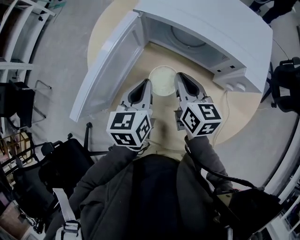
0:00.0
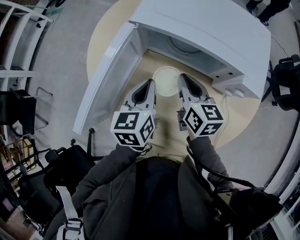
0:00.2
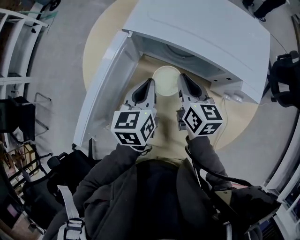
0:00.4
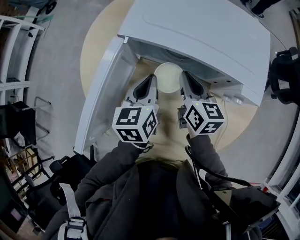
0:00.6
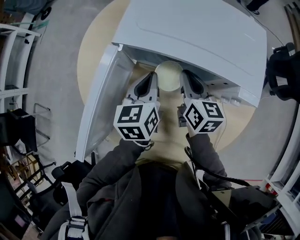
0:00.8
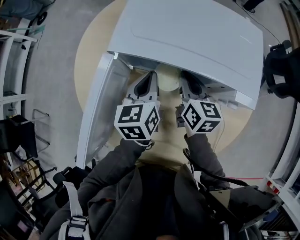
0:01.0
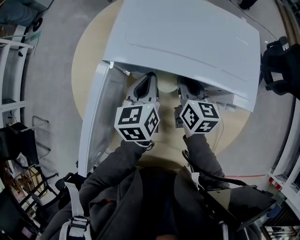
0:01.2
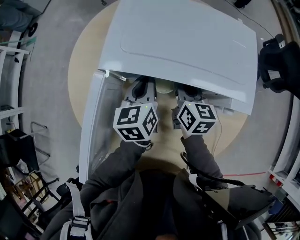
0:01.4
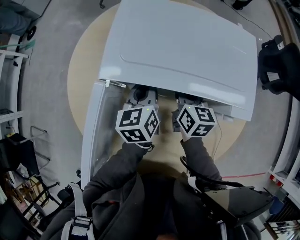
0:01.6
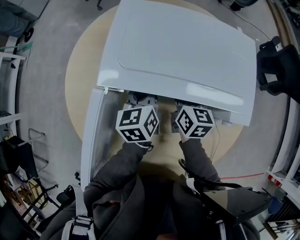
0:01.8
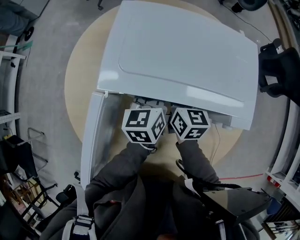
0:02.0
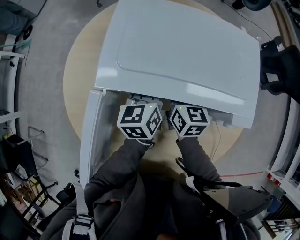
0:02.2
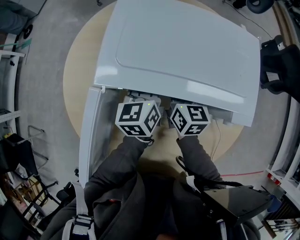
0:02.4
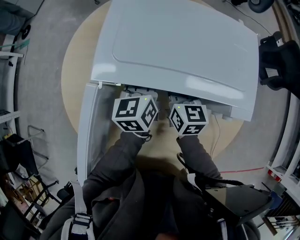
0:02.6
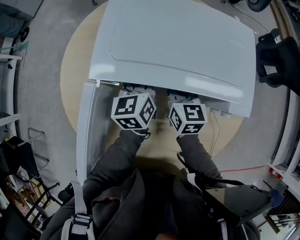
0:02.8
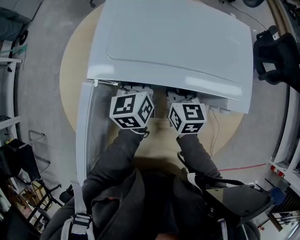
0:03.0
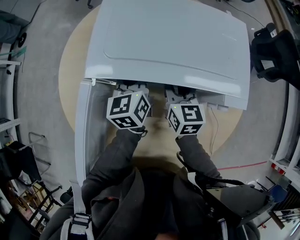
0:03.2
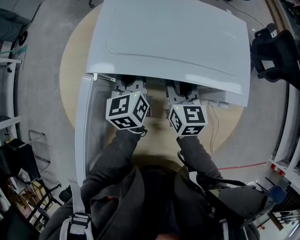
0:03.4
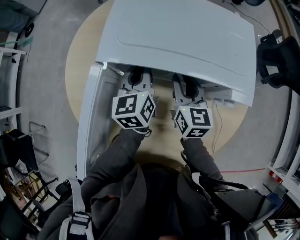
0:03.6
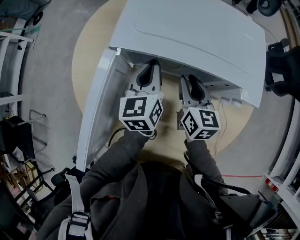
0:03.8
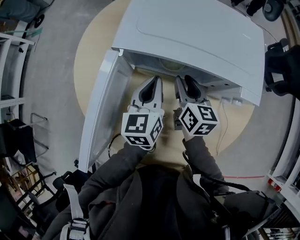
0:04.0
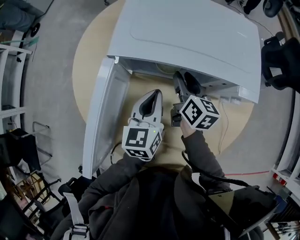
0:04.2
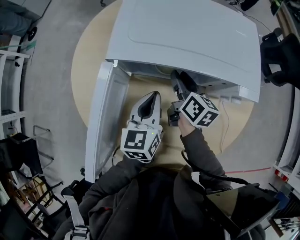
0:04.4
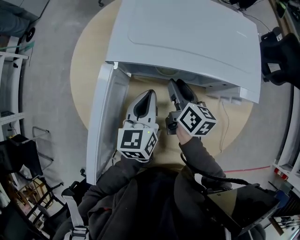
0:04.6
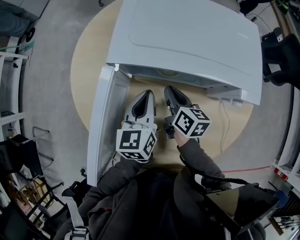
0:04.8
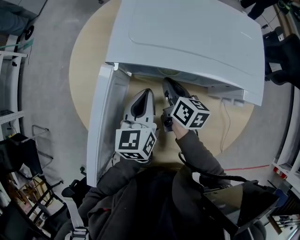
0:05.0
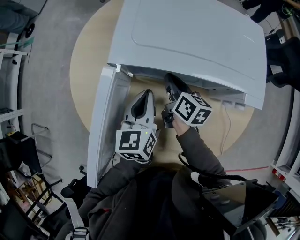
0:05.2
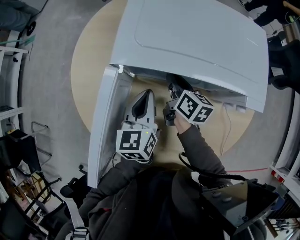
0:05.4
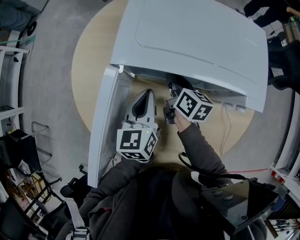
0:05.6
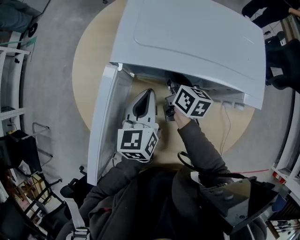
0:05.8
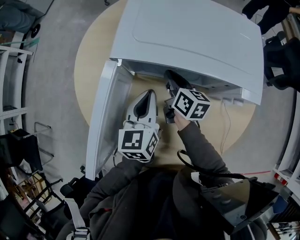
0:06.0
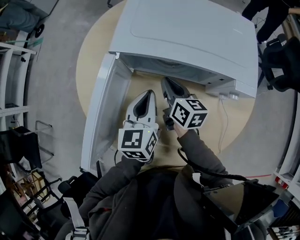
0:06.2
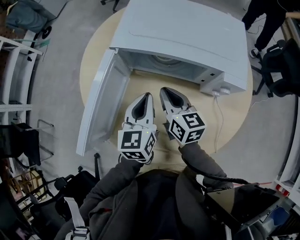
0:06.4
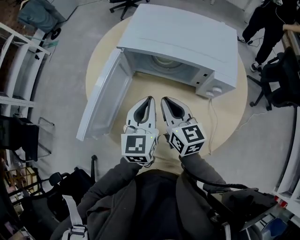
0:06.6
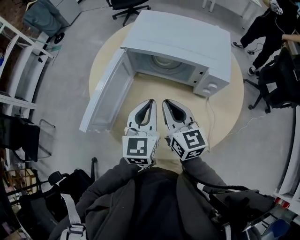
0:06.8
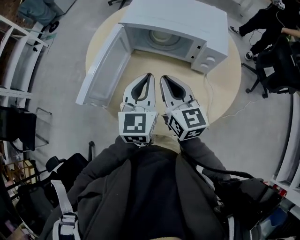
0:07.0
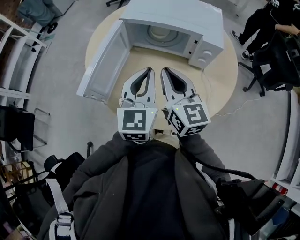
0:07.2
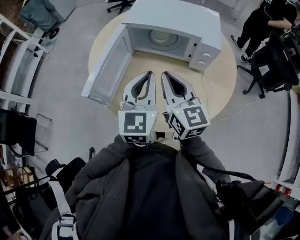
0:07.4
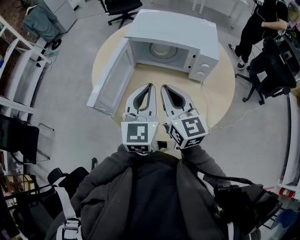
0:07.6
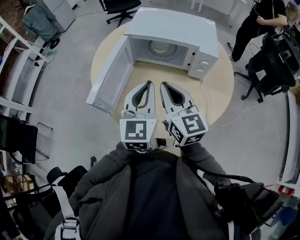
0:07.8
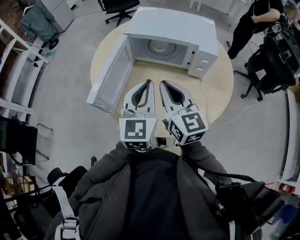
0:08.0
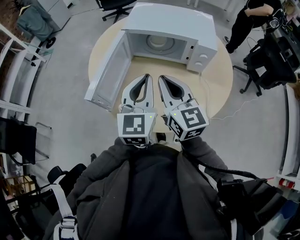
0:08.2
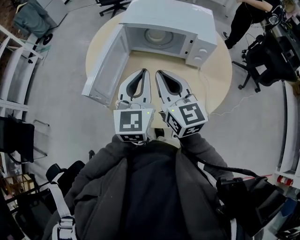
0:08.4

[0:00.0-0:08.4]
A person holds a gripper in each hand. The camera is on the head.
0:00.0 to 0:01.4: The right gripper heads forward and to the right, covering some 15 cm, and swivels some 20 degrees, while the left gripper travels forward by approximately 20 cm.
0:01.4 to 0:02.8: The left gripper travels forward by approximately 5 cm.
0:02.8 to 0:04.2: The left gripper shifts about 15 cm backward. Meanwhile the right gripper changes its angle by some 20 degrees, and opens.
0:04.2 to 0:05.6: The right gripper changes place by roughly 5 cm, and closes up; the left gripper changes place by about 5 cm.
0:05.6 to 0:07.0: The grippers both shift backward and upward by roughly 25 cm. The right gripper changes its angle by approximately 40 degrees, while the left gripper changes its angle by approximately 30 degrees.
0:07.0 to 0:08.4: The right gripper goes about 10 cm upward and backward, while the left gripper is displaced backward by approximately 5 cm.

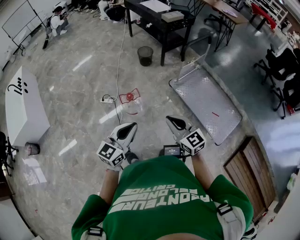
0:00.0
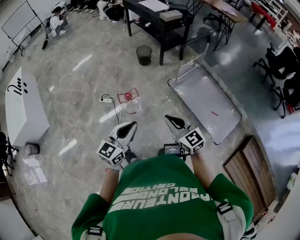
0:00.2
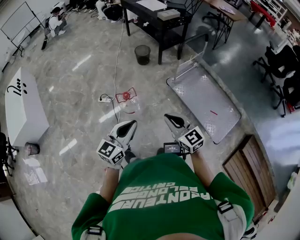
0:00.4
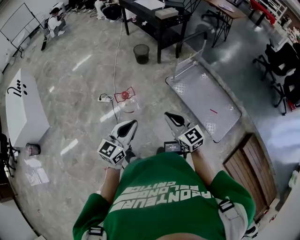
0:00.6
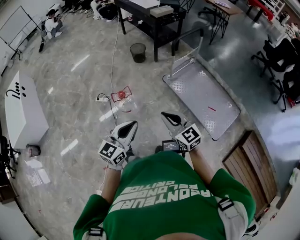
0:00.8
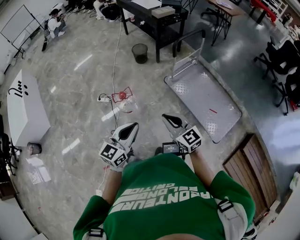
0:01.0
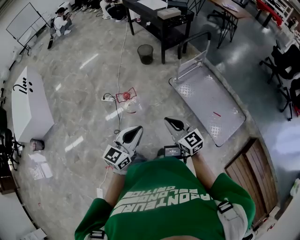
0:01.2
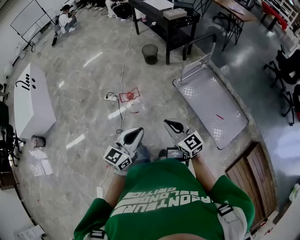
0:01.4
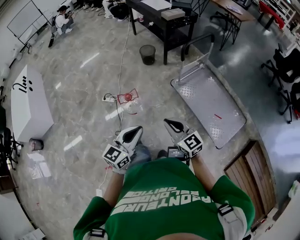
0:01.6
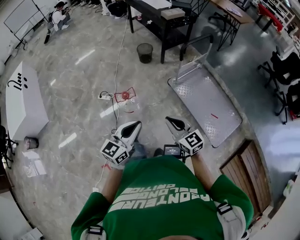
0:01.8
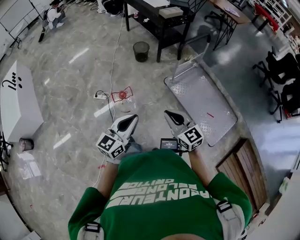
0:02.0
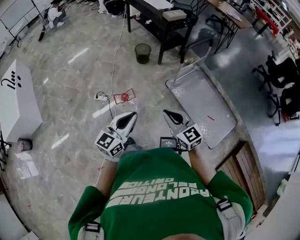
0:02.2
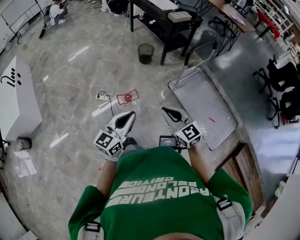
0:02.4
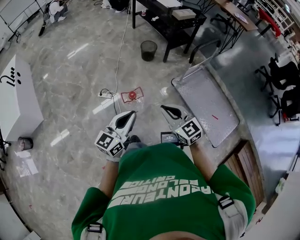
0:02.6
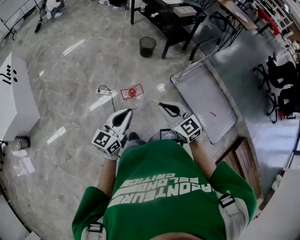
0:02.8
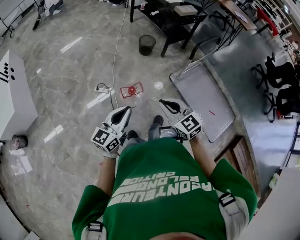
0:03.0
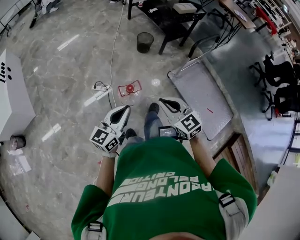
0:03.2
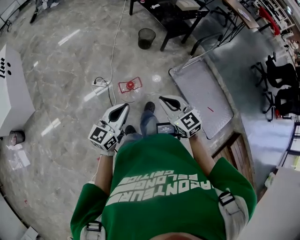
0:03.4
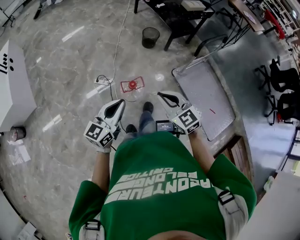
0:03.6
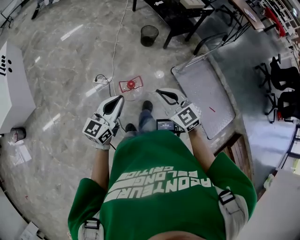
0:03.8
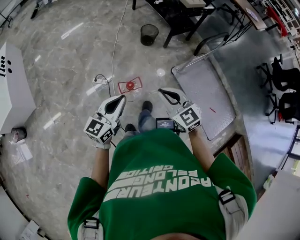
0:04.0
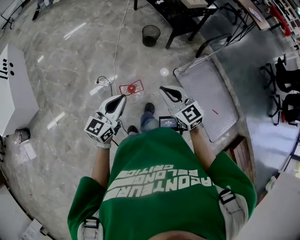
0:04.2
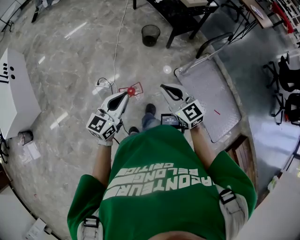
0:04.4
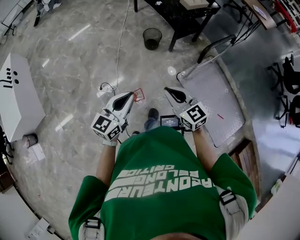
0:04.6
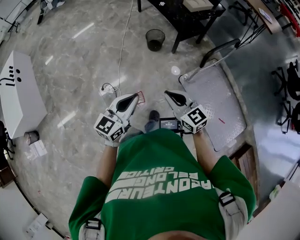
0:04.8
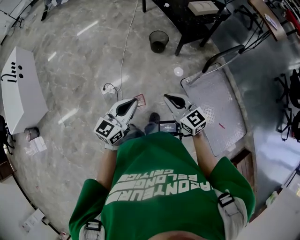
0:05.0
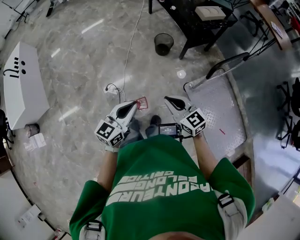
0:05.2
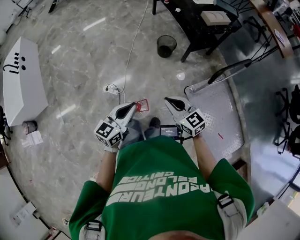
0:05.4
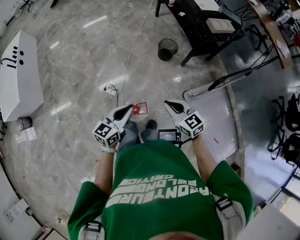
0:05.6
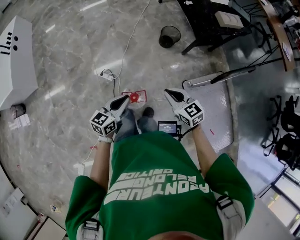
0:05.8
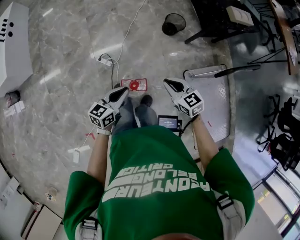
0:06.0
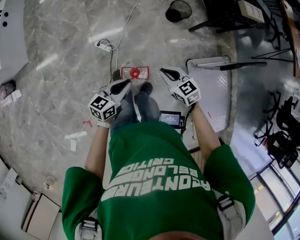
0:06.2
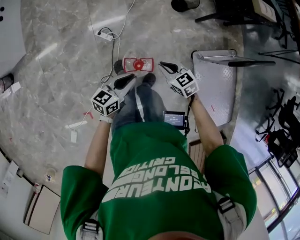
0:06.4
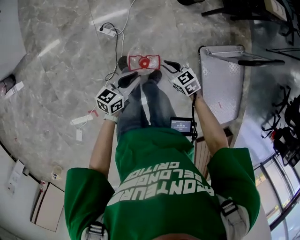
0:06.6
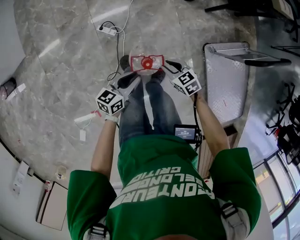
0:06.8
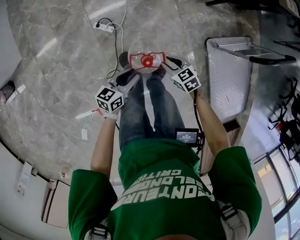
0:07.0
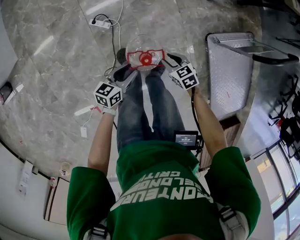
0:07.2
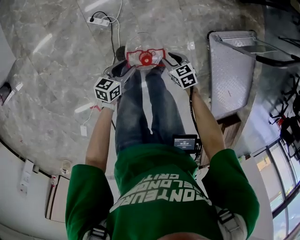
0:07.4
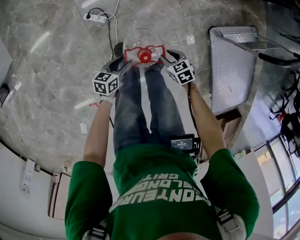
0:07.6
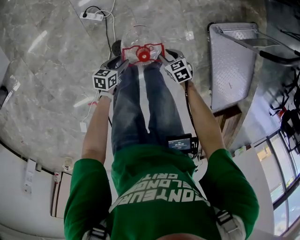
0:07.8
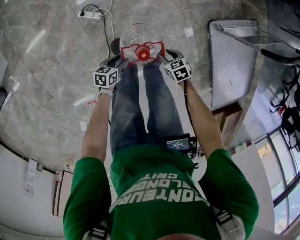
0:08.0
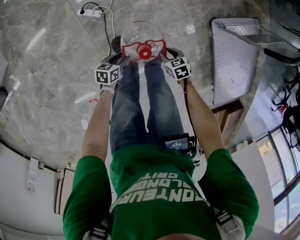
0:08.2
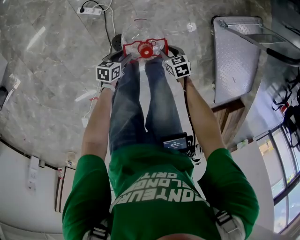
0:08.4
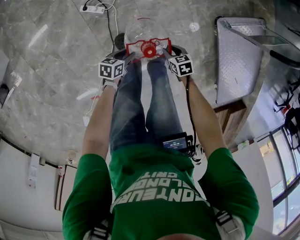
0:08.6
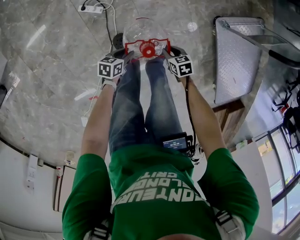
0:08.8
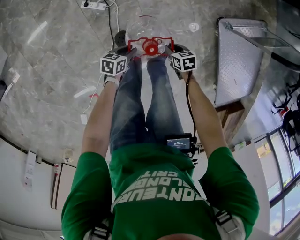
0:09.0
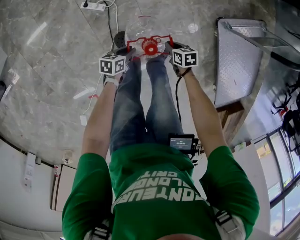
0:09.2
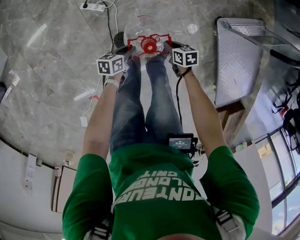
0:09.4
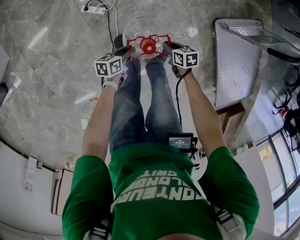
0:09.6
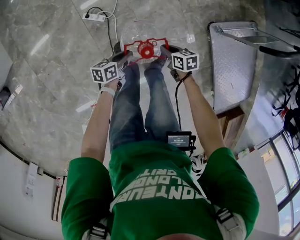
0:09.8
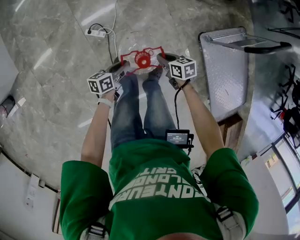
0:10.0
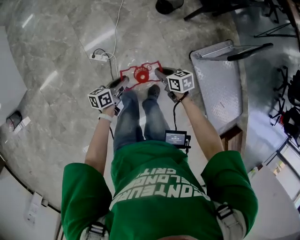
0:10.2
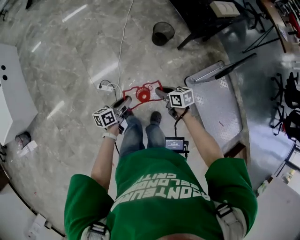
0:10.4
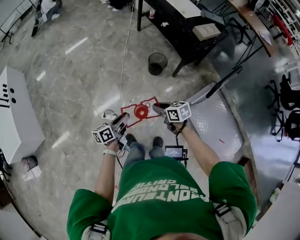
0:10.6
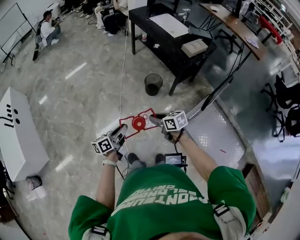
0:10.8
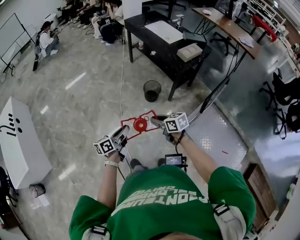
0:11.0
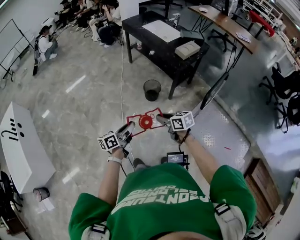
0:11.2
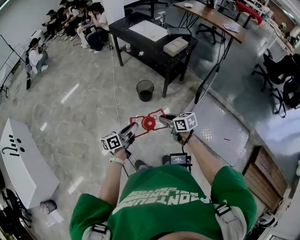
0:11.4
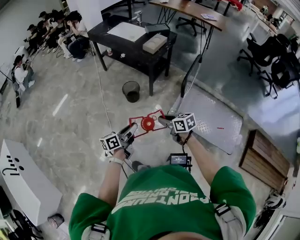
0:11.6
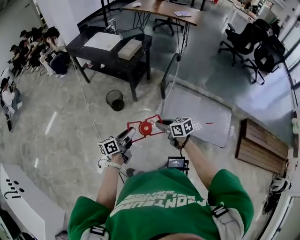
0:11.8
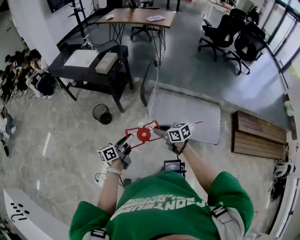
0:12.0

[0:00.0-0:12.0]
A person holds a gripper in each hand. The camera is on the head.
0:00.0 to 0:01.6: The left gripper is displaced to the right by roughly 10 cm. Meanwhile the right gripper travels to the right by roughly 5 cm.
0:01.6 to 0:03.0: The grippers both shift to the left and forward by approximately 25 cm.
0:03.0 to 0:04.4: The grippers both shift forward by roughly 15 cm.
0:04.4 to 0:06.0: The left gripper travels downward and forward by approximately 20 cm, and rotates about 30 degrees. Meanwhile the right gripper travels forward and downward by some 20 cm, and turns by some 30 degrees.
0:06.0 to 0:07.6: Both grippers travel together downward, roughly 40 cm. The left gripper changes its angle by roughly 30 degrees, and opens its fingers; the right gripper rotates approximately 30 degrees, and opens its fingers.
0:07.6 to 0:09.0: Both grippers move downward, approximately 10 cm. The right gripper rotates approximately 20 degrees; the left gripper closes its fingers.
0:09.0 to 0:10.4: Both grippers travel together upward, roughly 35 cm. The left gripper swivels roughly 30 degrees. Meanwhile the right gripper swivels some 30 degrees.
0:10.4 to 0:12.0: The left gripper shifts by about 35 cm, and rotates roughly 40 degrees. The right gripper ends up about 35 cm from where it was, and rotates some 40 degrees.

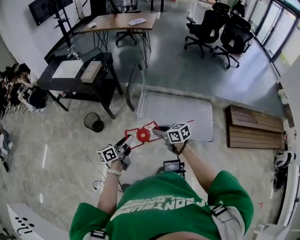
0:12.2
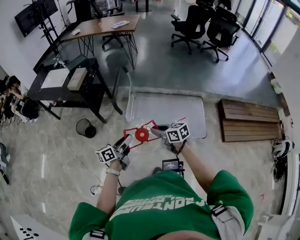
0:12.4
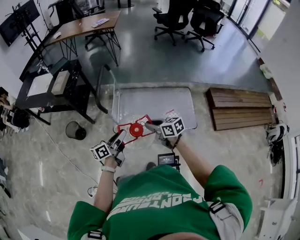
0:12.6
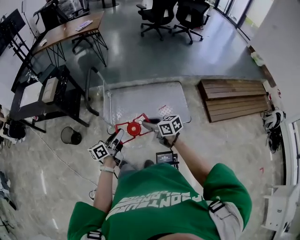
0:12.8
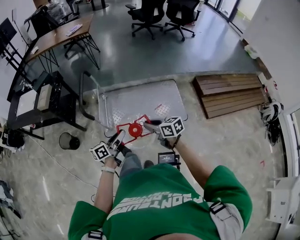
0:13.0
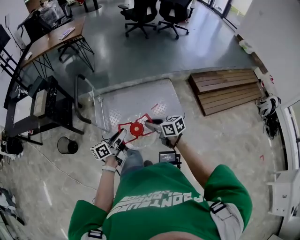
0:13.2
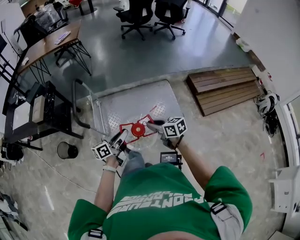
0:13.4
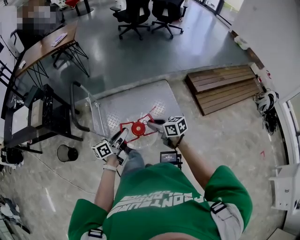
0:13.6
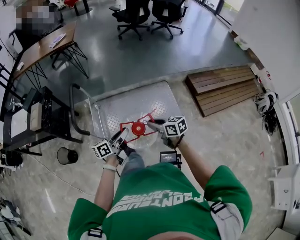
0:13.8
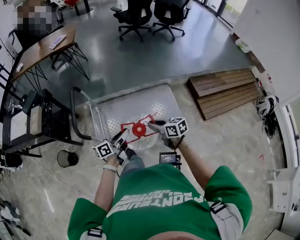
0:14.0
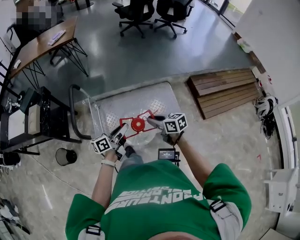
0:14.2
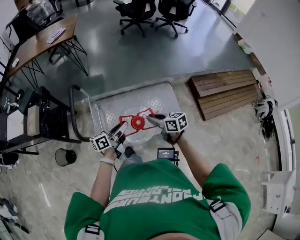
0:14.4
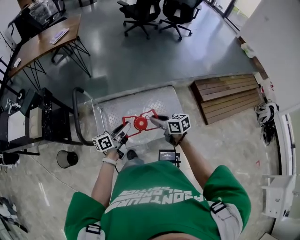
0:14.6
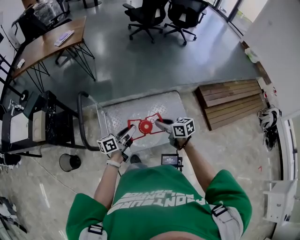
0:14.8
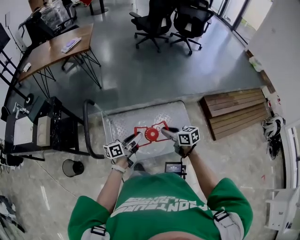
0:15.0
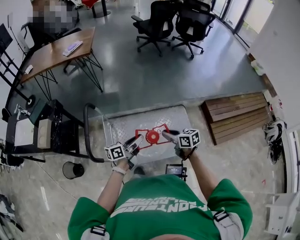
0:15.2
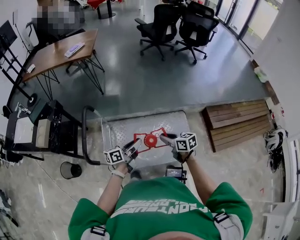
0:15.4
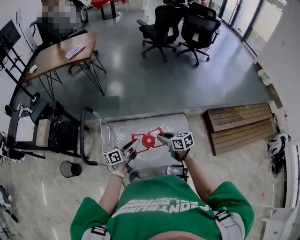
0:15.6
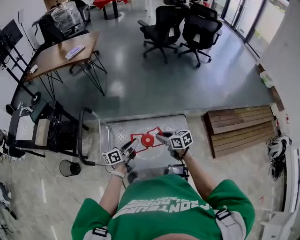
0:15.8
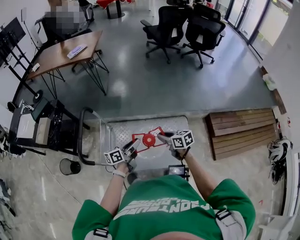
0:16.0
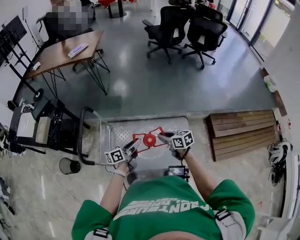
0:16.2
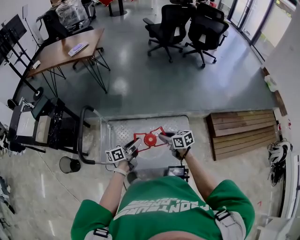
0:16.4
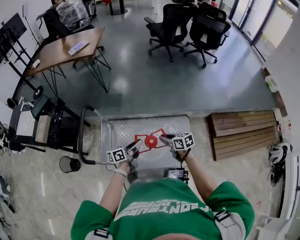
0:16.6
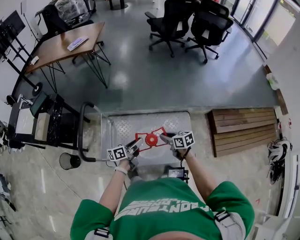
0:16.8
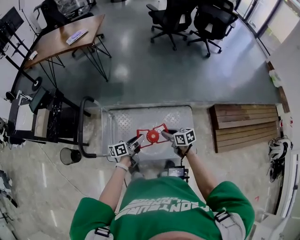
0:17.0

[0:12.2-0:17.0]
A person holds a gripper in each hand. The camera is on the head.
0:12.2 to 0:13.8: The right gripper ends up roughly 30 cm from where it was, and changes its angle by roughly 30 degrees. The left gripper moves some 30 cm, and changes its angle by about 30 degrees.
0:13.8 to 0:15.4: Both grippers travel together forward, roughly 20 cm.
0:15.4 to 0:17.0: The left gripper is displaced downward by about 10 cm; the right gripper moves downward and forward, roughly 10 cm.
